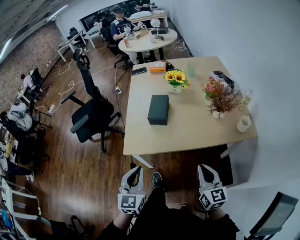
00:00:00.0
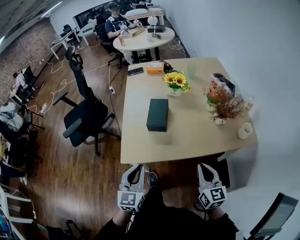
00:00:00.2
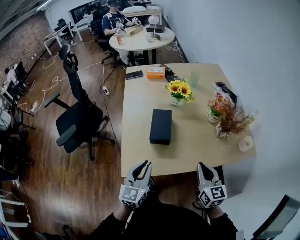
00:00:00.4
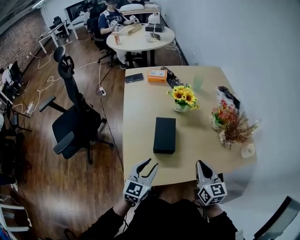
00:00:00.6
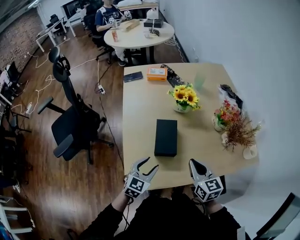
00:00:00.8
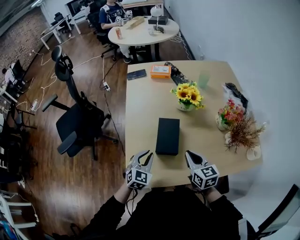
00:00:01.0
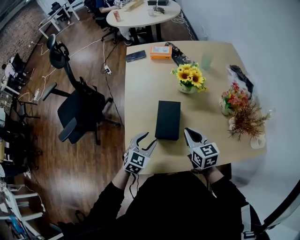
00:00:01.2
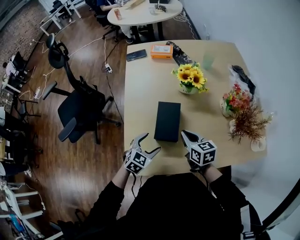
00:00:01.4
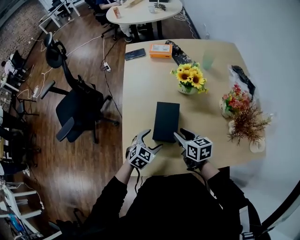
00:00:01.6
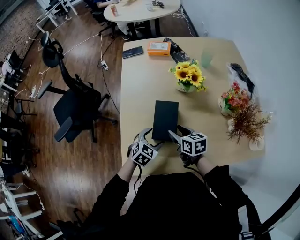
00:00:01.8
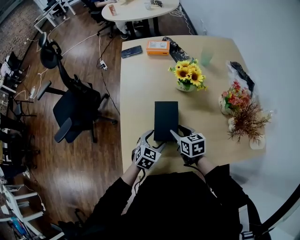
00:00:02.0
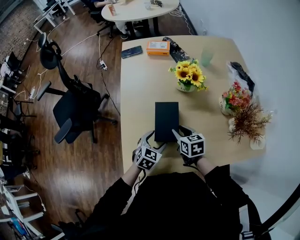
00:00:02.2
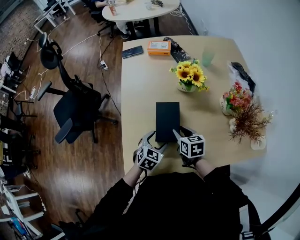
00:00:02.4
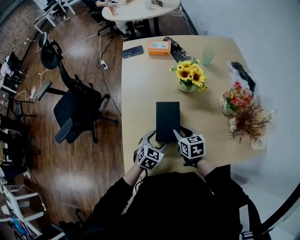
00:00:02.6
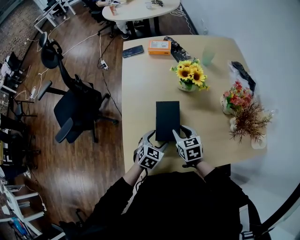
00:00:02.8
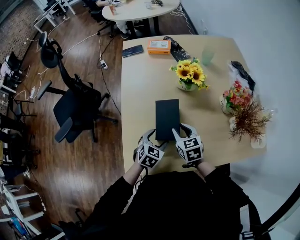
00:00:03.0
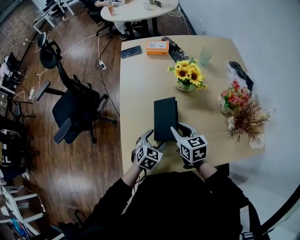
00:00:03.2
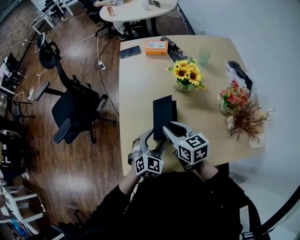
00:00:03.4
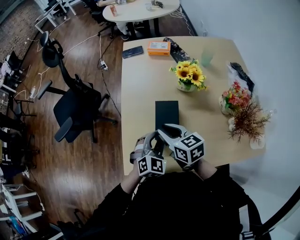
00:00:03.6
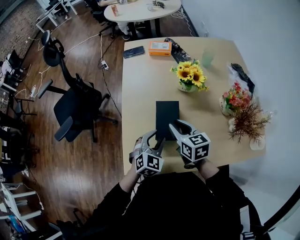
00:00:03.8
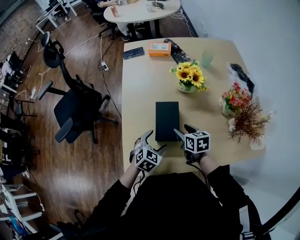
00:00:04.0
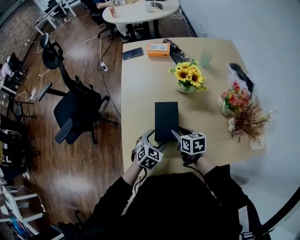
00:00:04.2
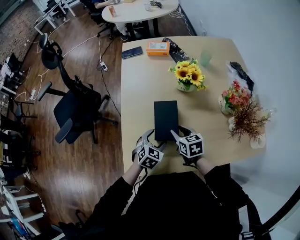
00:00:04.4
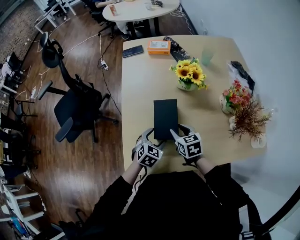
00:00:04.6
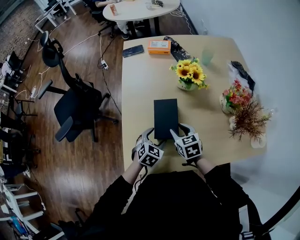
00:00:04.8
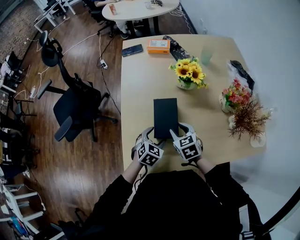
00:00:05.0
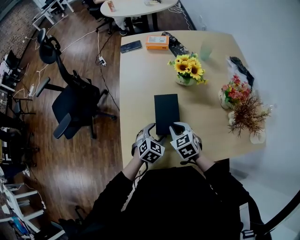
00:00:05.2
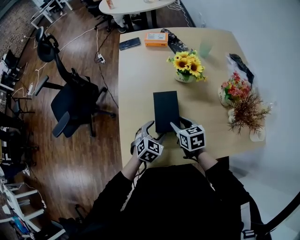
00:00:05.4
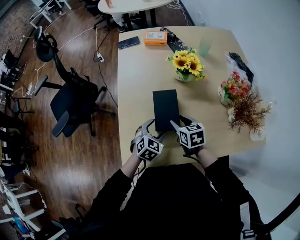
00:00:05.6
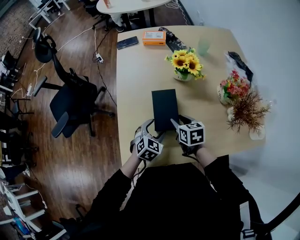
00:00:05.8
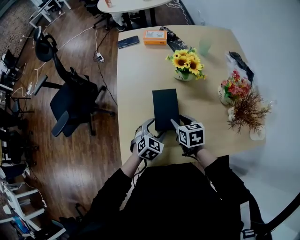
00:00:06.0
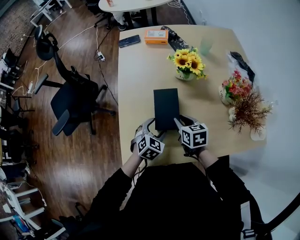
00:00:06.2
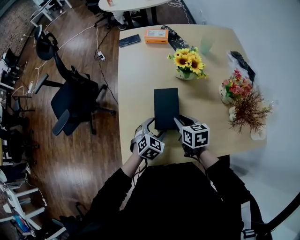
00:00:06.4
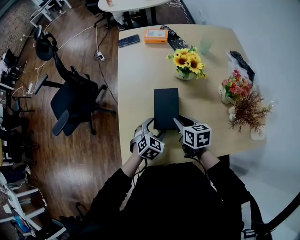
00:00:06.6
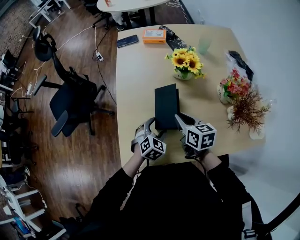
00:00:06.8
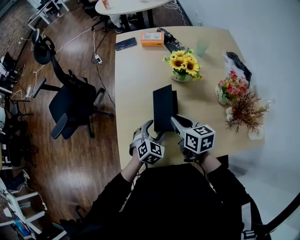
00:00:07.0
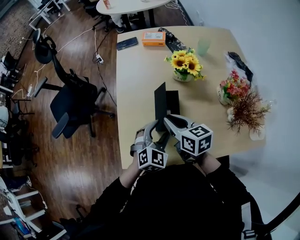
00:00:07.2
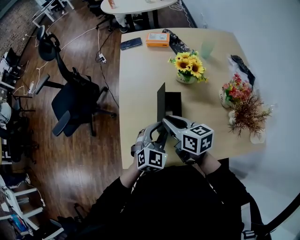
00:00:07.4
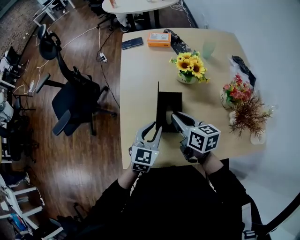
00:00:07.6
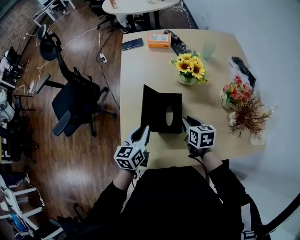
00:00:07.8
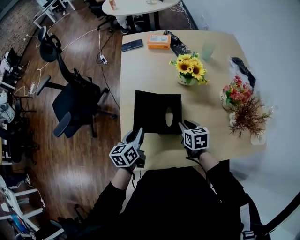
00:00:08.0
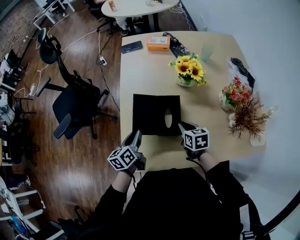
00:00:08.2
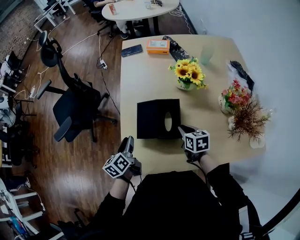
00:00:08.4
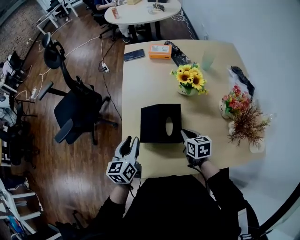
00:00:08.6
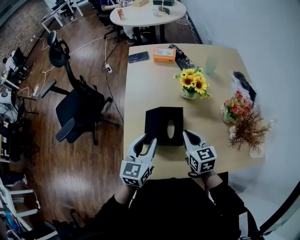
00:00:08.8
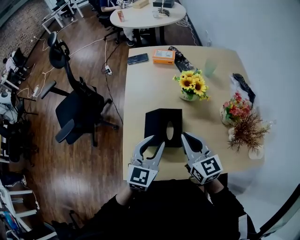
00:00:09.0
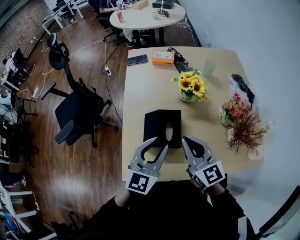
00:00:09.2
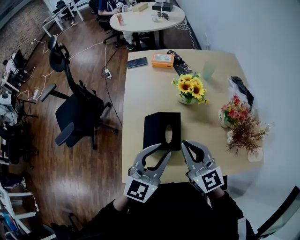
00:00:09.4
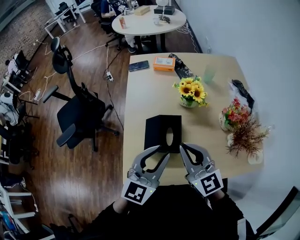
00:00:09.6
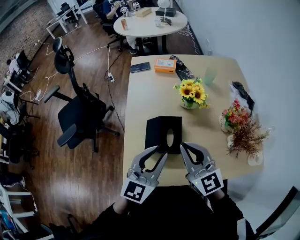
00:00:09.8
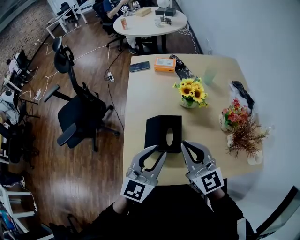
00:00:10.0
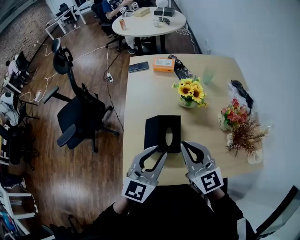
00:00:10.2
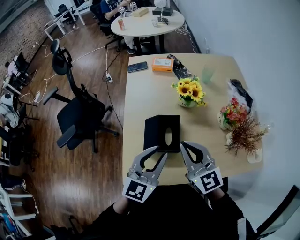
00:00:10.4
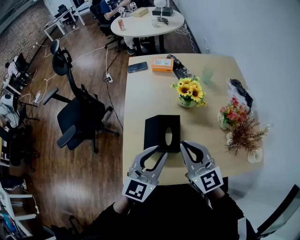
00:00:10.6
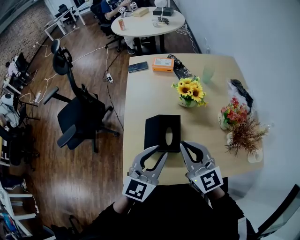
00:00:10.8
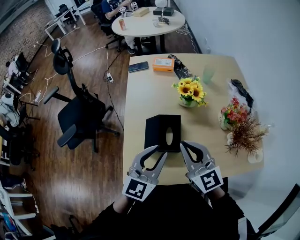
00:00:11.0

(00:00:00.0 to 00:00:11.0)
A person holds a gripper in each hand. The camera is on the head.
00:00:00.0 - 00:00:01.6: The right gripper is displaced forward and to the left by some 40 cm, turns by approximately 30 degrees, and opens up. The left gripper is displaced forward and downward by some 40 cm, tilts its fingers approximately 30 degrees downward, and opens its fingers.
00:00:03.2 - 00:00:04.8: The left gripper moves roughly 10 cm upward and comes back, and closes, then reopens; the right gripper heads downward, covering some 5 cm.
00:00:04.8 - 00:00:06.2: There are only small adjustments of the grippers.
00:00:06.2 - 00:00:07.8: The right gripper travels upward and back again, approximately 10 cm each way; the left gripper goes some 10 cm upward and to the left, rotates around the line of its fingers by about 40 degrees, counterclockwise from behind, and closes.
00:00:07.8 - 00:00:09.4: The left gripper travels upward and to the right by about 20 cm, and changes its angle by some 40 degrees. Meanwhile the right gripper heads upward, covering about 20 cm, and angles its fingers upward, by roughly 40 degrees.
00:00:09.4 - 00:00:11.0: The grippers make only small movements.

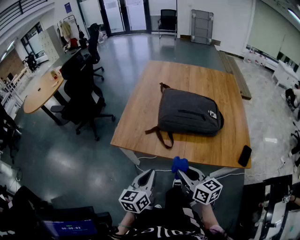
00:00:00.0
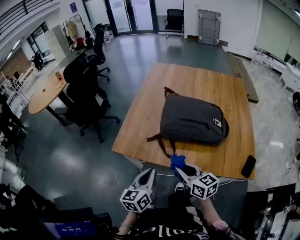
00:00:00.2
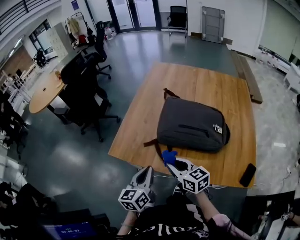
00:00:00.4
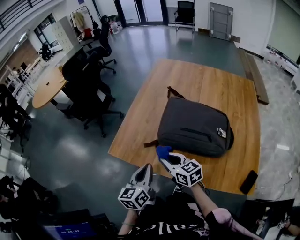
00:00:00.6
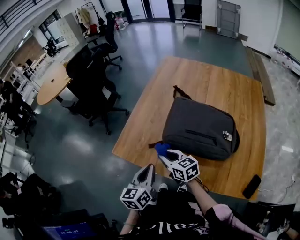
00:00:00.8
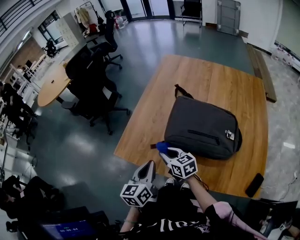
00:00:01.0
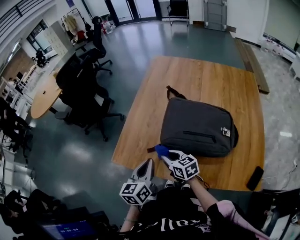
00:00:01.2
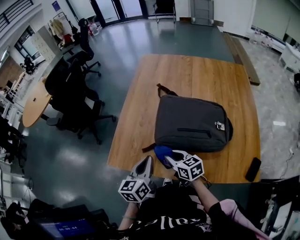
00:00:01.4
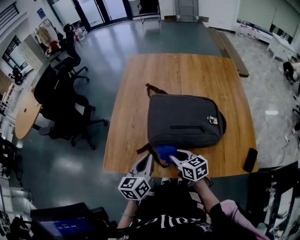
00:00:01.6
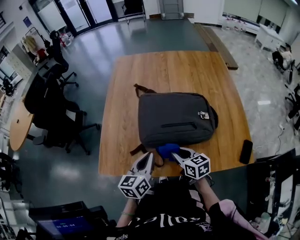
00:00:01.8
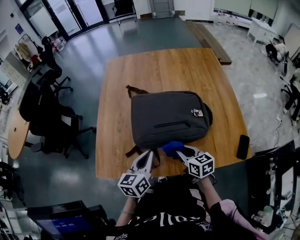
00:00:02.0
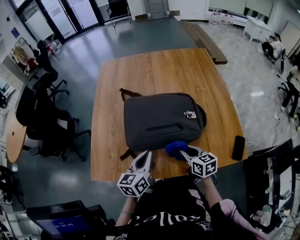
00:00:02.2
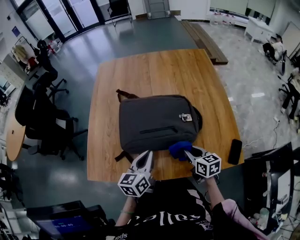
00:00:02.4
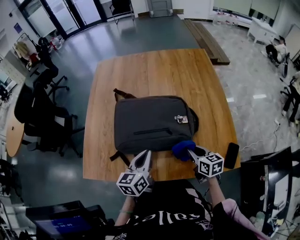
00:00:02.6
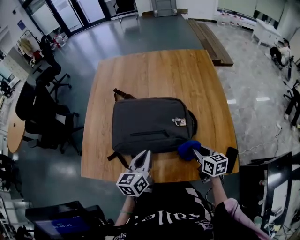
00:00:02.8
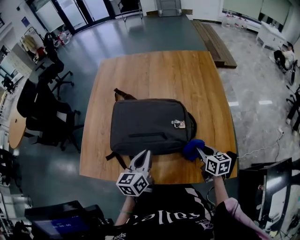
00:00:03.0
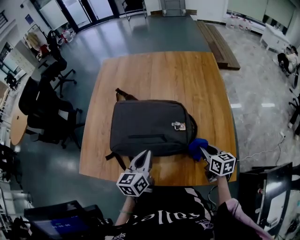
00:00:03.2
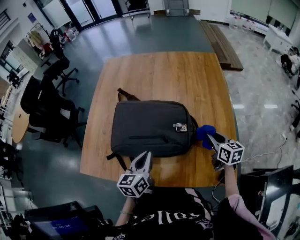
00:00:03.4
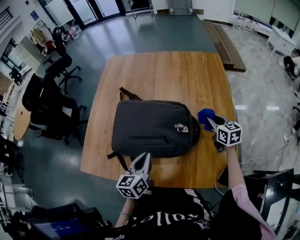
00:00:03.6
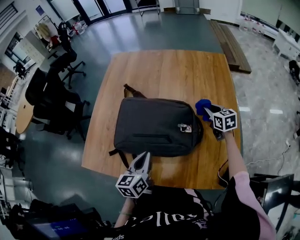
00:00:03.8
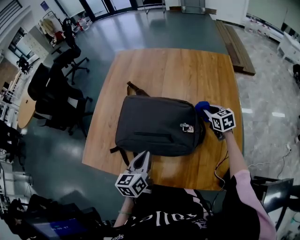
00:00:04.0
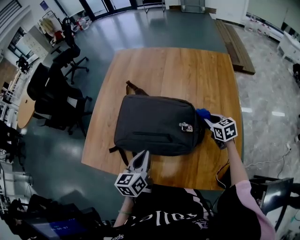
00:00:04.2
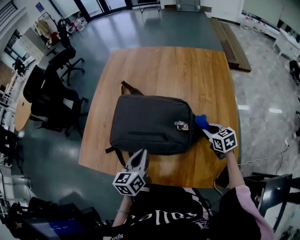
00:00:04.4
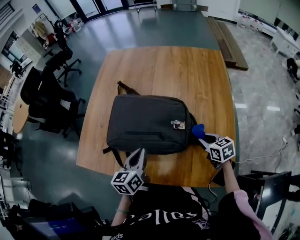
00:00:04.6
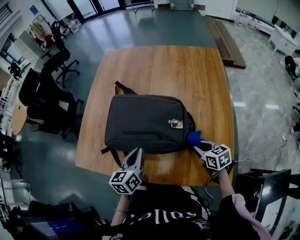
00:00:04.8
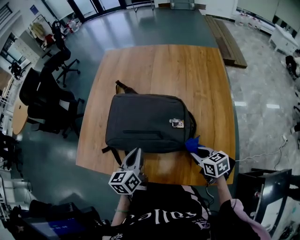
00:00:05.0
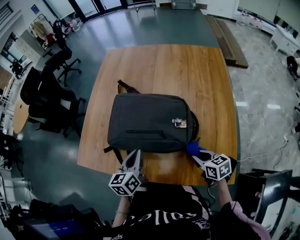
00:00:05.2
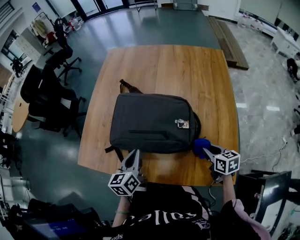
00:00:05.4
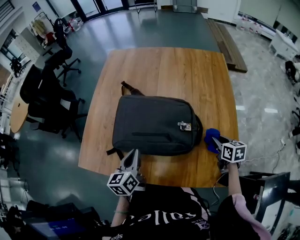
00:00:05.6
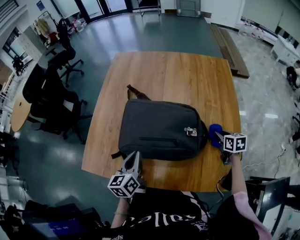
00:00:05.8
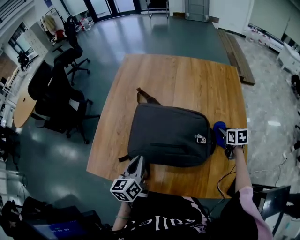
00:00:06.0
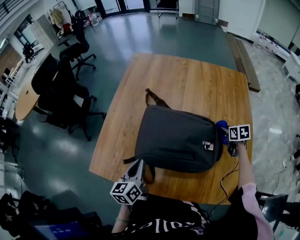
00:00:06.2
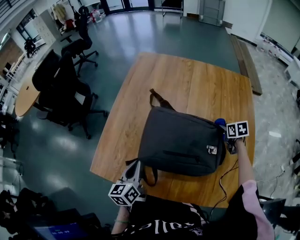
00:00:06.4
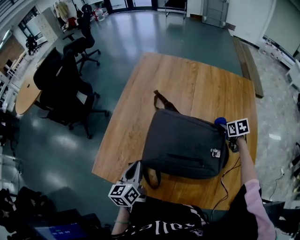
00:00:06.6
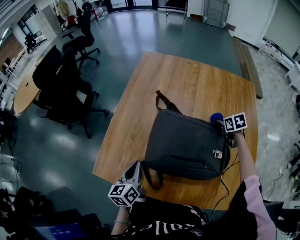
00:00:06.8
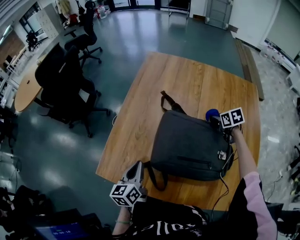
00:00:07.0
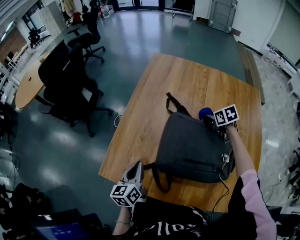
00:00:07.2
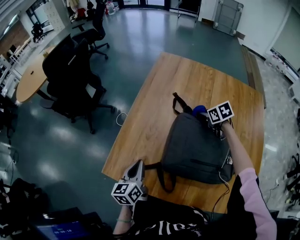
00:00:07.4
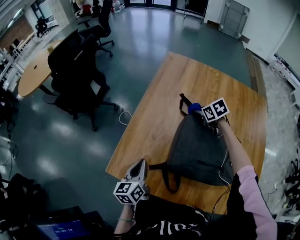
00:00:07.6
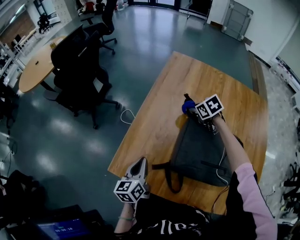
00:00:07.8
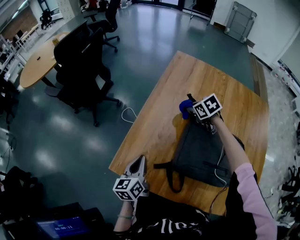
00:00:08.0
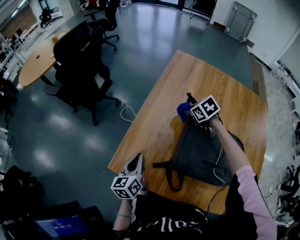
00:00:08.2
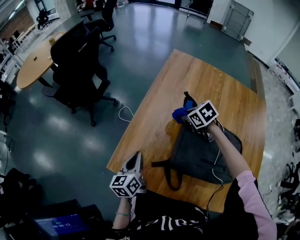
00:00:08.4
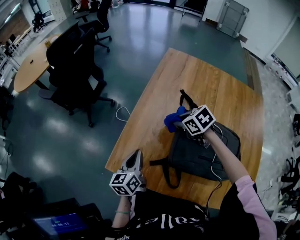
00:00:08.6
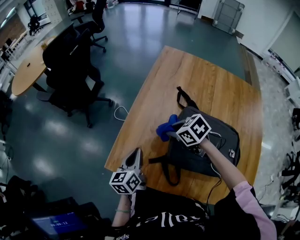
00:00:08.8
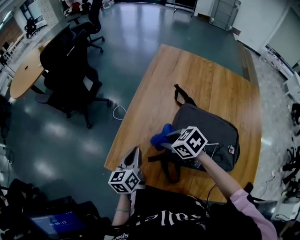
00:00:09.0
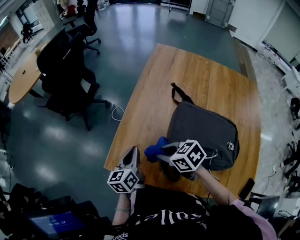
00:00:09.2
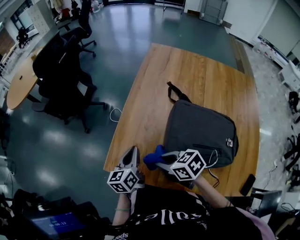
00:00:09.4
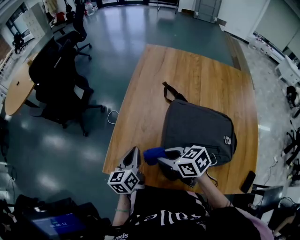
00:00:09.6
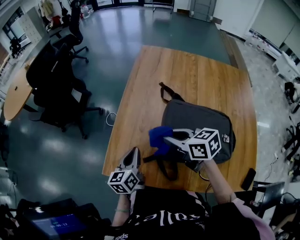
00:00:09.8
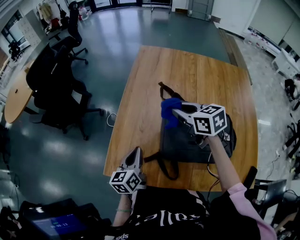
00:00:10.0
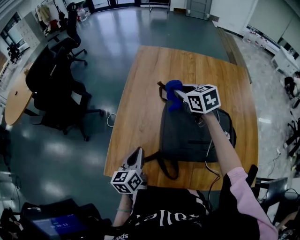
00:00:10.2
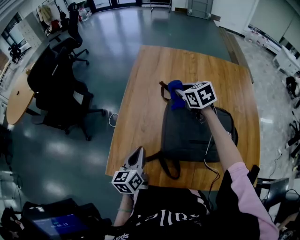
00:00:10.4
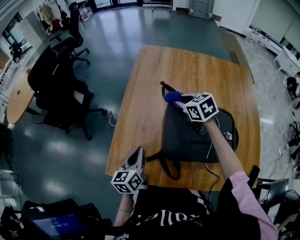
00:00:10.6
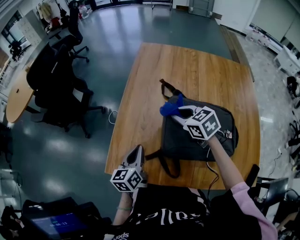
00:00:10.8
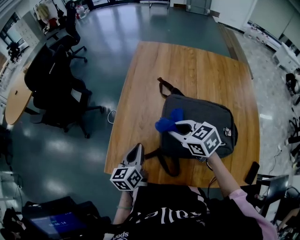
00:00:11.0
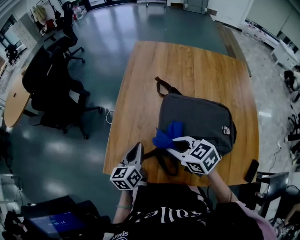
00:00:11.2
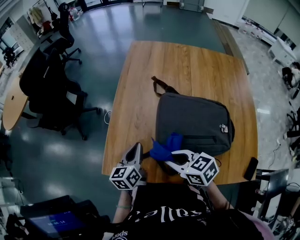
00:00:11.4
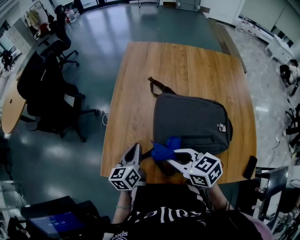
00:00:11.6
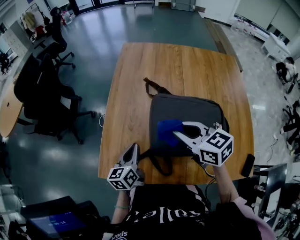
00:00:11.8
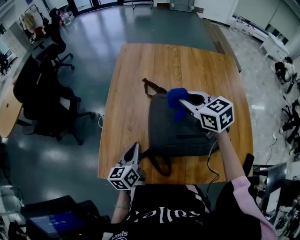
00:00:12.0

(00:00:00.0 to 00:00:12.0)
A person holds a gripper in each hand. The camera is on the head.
00:00:00.0 - 00:00:01.6: The left gripper is displaced forward and to the right by some 25 cm; the right gripper goes roughly 25 cm forward and downward.
00:00:01.6 - 00:00:03.0: The right gripper goes about 35 cm to the right, and swivels some 20 degrees; the left gripper moves to the right, approximately 20 cm.
00:00:03.0 - 00:00:04.4: The right gripper travels forward by approximately 10 cm, and rotates approximately 30 degrees.
00:00:04.4 - 00:00:06.0: The left gripper is displaced to the left by approximately 10 cm. The right gripper travels backward and back again, roughly 15 cm each way, and turns by about 20 degrees.
00:00:06.0 - 00:00:07.6: The left gripper heads to the left, covering about 20 cm. The right gripper is displaced to the left and forward by about 50 cm, and turns by some 40 degrees.
00:00:07.6 - 00:00:09.0: The right gripper moves to the left and backward, approximately 30 cm, and rotates roughly 20 degrees.
00:00:09.0 - 00:00:10.4: The left gripper shifts by approximately 5 cm. The right gripper shifts by about 25 cm, and rotates approximately 40 degrees.
00:00:10.4 - 00:00:12.0: The right gripper moves backward and upward, some 15 cm.
